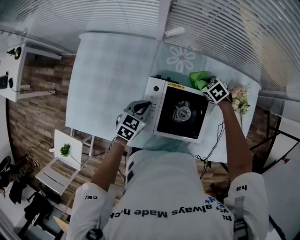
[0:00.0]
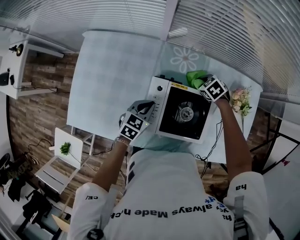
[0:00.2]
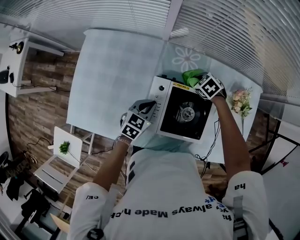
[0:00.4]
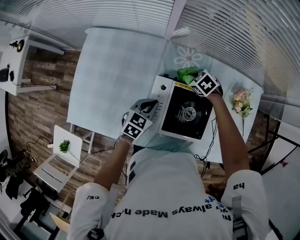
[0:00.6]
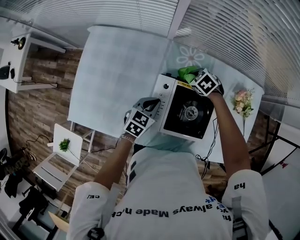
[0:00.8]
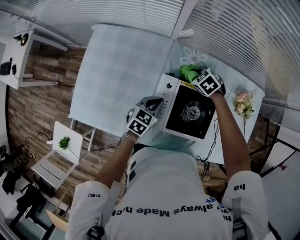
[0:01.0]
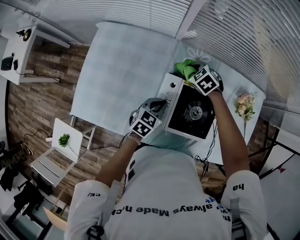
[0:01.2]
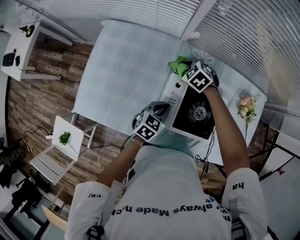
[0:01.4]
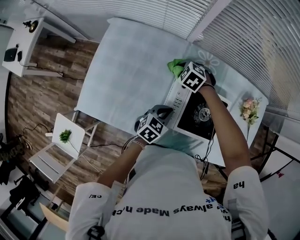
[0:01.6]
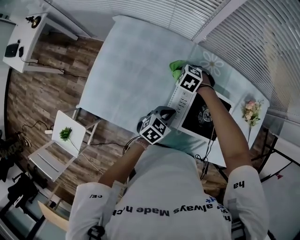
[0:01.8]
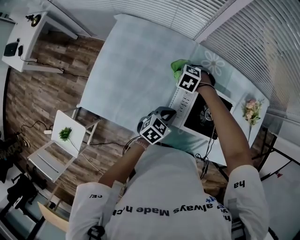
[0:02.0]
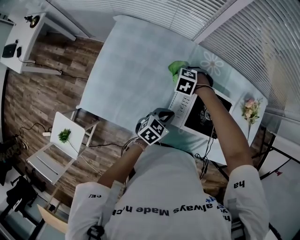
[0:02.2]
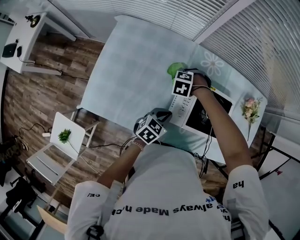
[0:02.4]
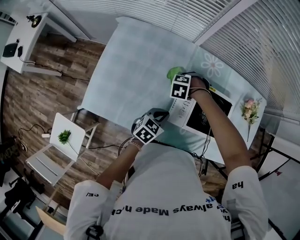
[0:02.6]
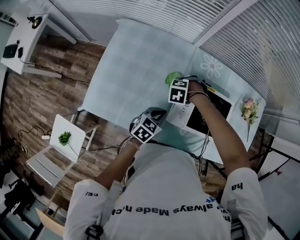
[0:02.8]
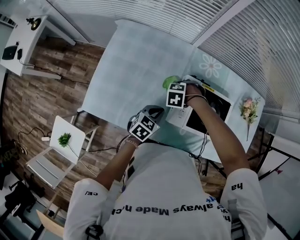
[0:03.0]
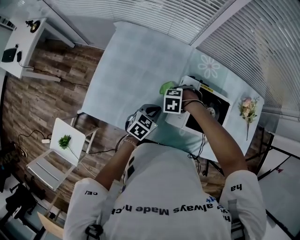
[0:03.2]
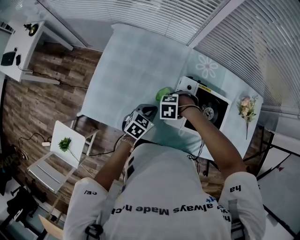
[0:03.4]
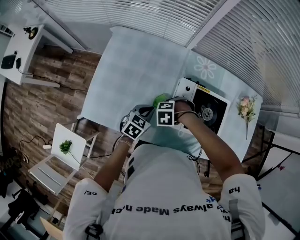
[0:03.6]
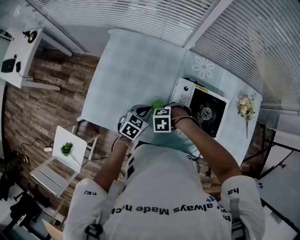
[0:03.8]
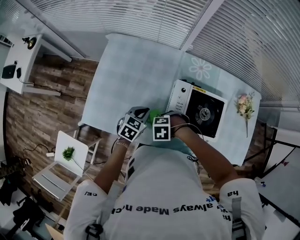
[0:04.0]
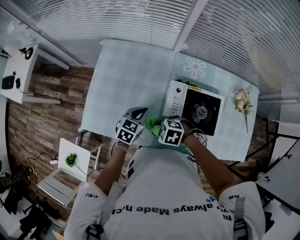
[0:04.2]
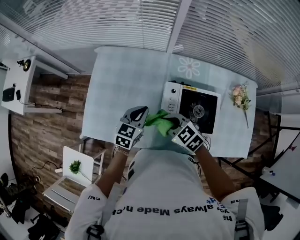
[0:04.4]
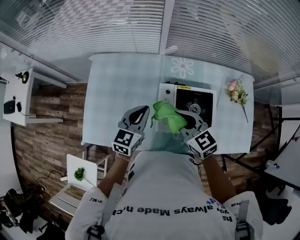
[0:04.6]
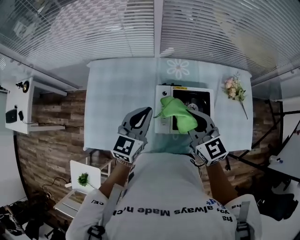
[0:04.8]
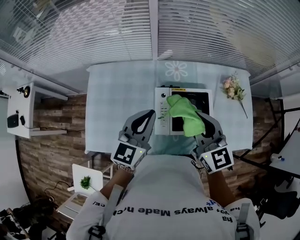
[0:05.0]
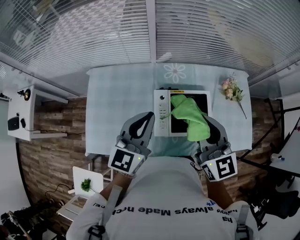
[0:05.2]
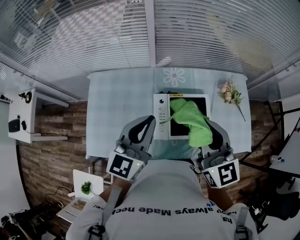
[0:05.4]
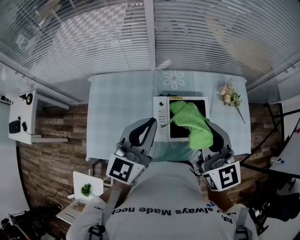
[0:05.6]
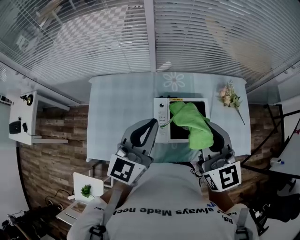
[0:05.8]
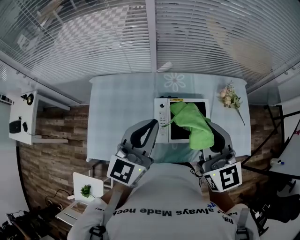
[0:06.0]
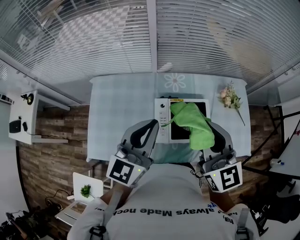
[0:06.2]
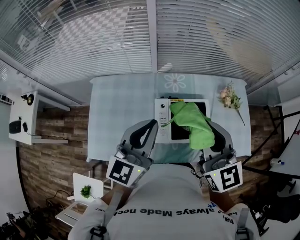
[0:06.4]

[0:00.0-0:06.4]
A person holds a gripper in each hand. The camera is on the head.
0:00.0 to 0:01.6: The left gripper moves backward, roughly 5 cm. Meanwhile the right gripper is displaced to the left by roughly 25 cm, and rotates about 30 degrees.
0:01.6 to 0:03.2: The left gripper moves roughly 10 cm. The right gripper changes place by about 15 cm, and turns by some 30 degrees.
0:03.2 to 0:04.8: The two grippers go about 25 cm upward. The left gripper changes its angle by approximately 30 degrees; the right gripper tilts its fingers some 70 degrees upward.
0:04.8 to 0:06.4: The grippers both shift upward by some 15 cm. The right gripper changes its angle by some 20 degrees.

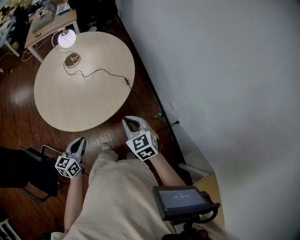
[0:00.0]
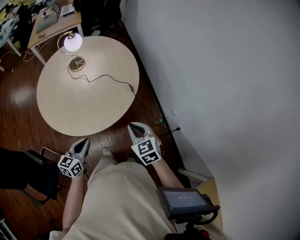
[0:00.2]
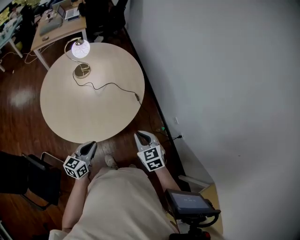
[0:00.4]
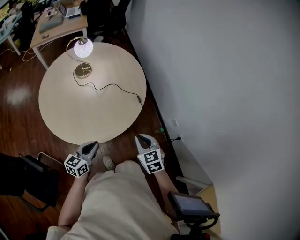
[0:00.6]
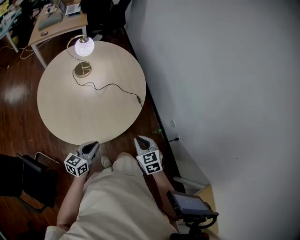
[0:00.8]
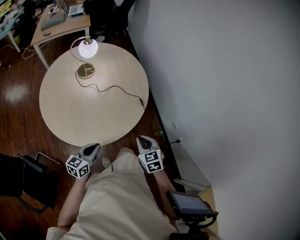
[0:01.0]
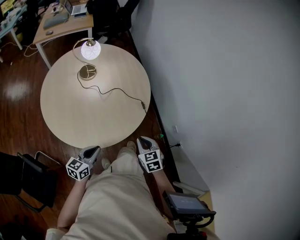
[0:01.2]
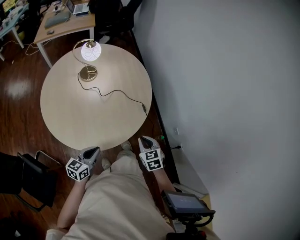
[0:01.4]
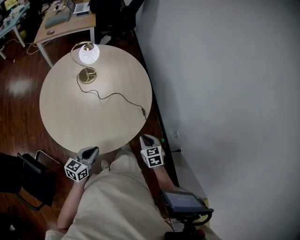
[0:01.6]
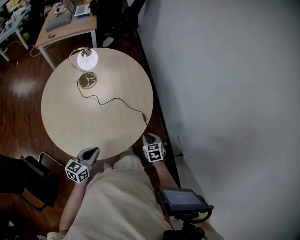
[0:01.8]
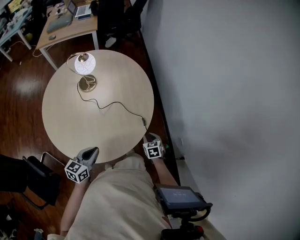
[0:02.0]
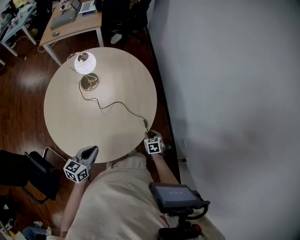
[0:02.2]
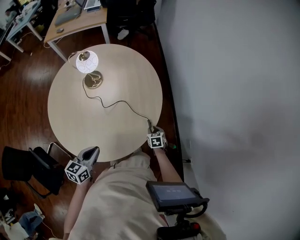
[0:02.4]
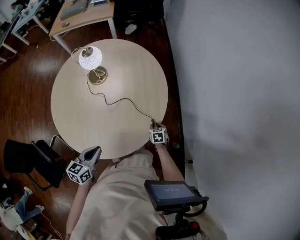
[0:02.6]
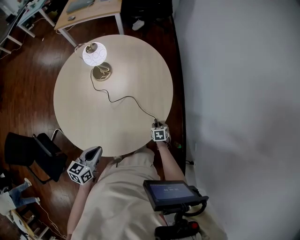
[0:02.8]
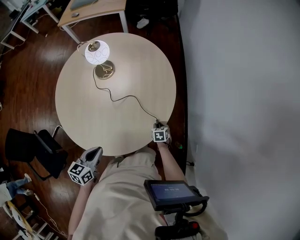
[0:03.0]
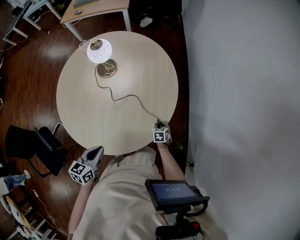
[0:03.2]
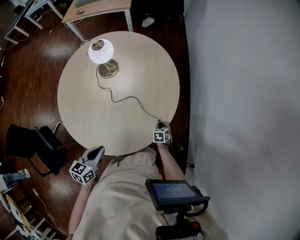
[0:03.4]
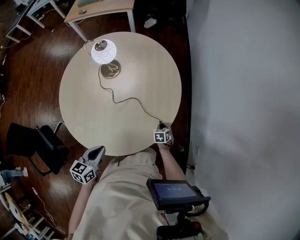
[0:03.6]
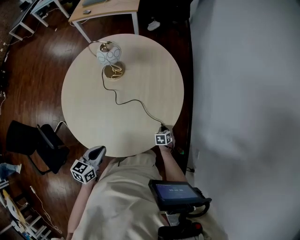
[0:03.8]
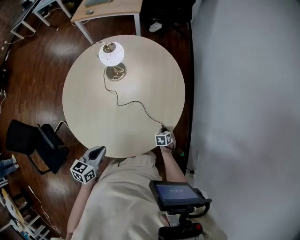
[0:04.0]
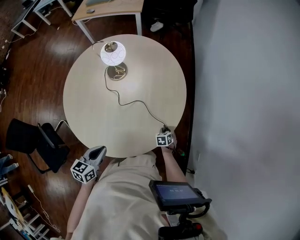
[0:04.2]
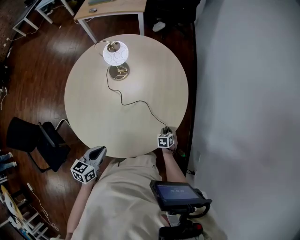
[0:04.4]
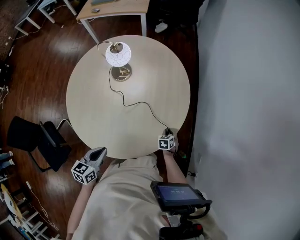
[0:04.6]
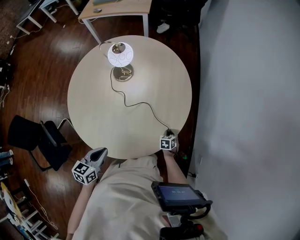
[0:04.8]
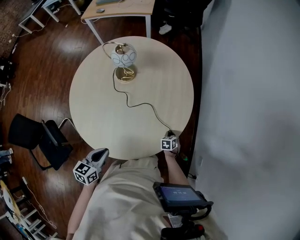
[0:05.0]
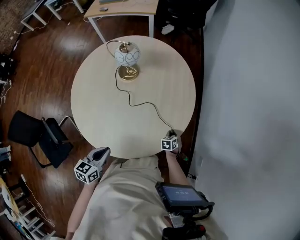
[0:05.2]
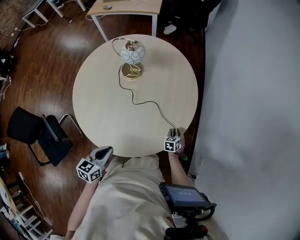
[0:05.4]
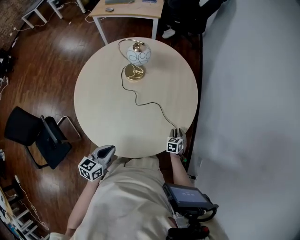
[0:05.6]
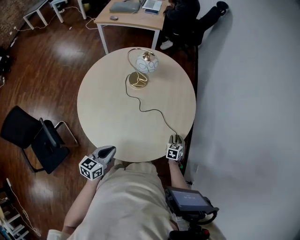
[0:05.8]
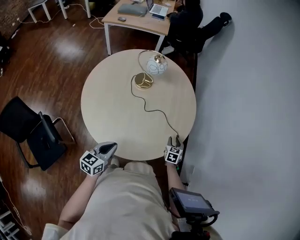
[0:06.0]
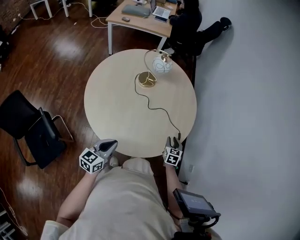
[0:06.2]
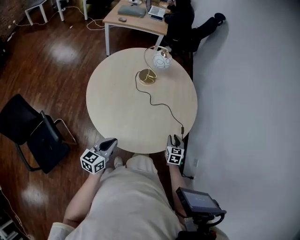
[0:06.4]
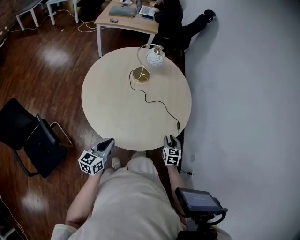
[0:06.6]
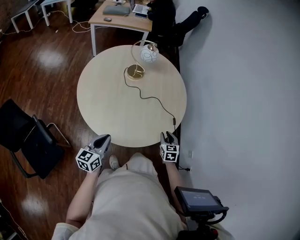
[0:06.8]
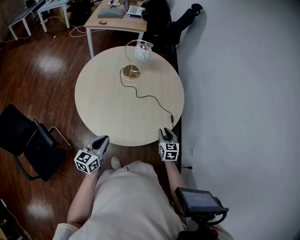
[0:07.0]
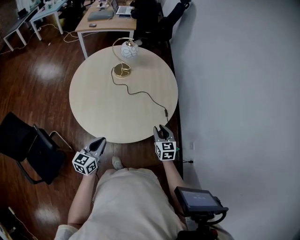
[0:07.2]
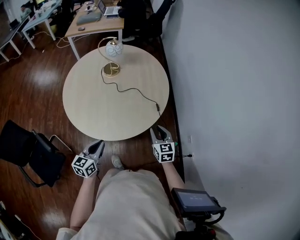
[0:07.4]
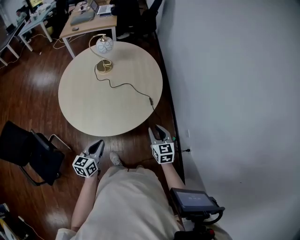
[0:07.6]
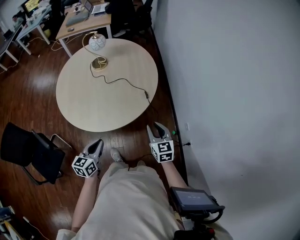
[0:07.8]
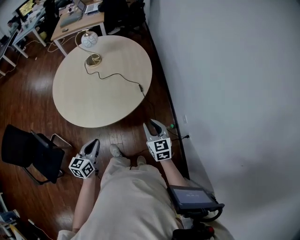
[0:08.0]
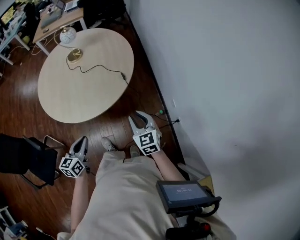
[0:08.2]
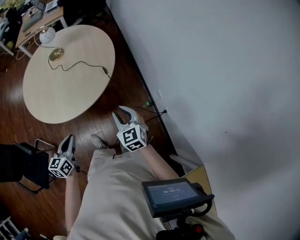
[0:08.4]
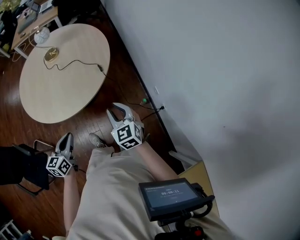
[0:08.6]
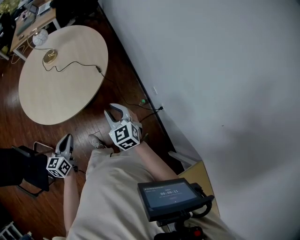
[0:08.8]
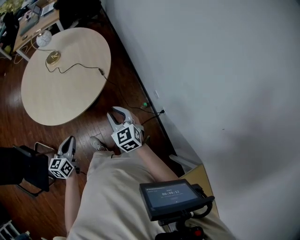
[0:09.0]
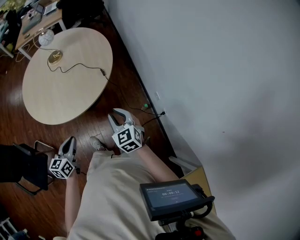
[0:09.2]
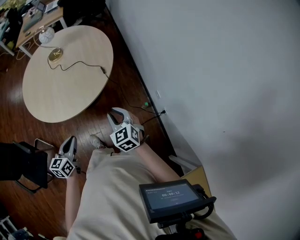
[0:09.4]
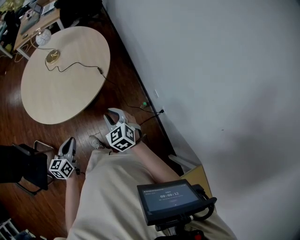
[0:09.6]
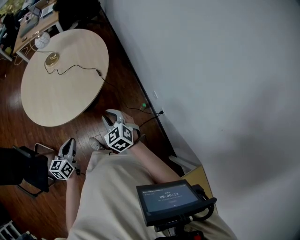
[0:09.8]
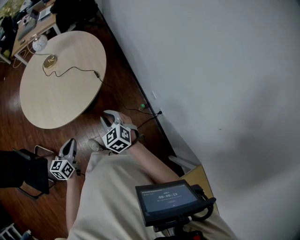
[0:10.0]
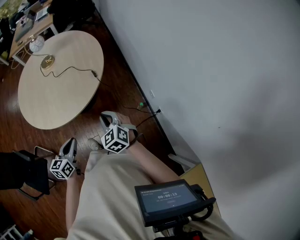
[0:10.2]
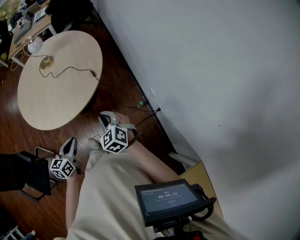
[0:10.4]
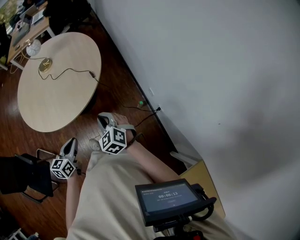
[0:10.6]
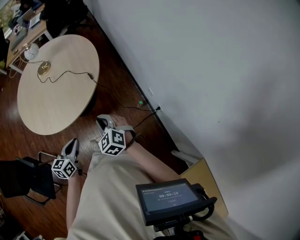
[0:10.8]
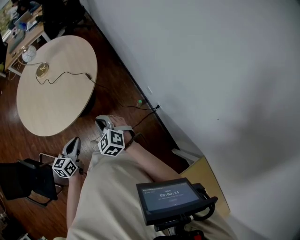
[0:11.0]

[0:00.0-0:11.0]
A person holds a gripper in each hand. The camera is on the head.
0:00.0 to 0:01.6: The left gripper moves forward and to the left, approximately 15 cm. Meanwhile the right gripper moves downward and forward, some 15 cm.
0:01.6 to 0:03.2: The left gripper travels forward by roughly 10 cm, and changes its angle by some 30 degrees. The right gripper travels downward and forward by some 35 cm.
0:03.2 to 0:04.8: The grippers stay close to where they were, moving slightly.
0:04.8 to 0:06.2: The left gripper moves to the left and backward, about 15 cm; the right gripper heads upward, backward and to the left, covering some 25 cm, and changes its angle by some 20 degrees.
0:06.2 to 0:07.8: The right gripper travels backward, to the right and upward by about 25 cm, and turns by about 20 degrees; the left gripper goes some 20 cm to the right and backward.
0:07.8 to 0:09.4: The right gripper is displaced backward by roughly 10 cm, while the left gripper shifts approximately 10 cm backward and to the right.
0:09.4 to 0:11.0: The left gripper is displaced to the right by about 5 cm.

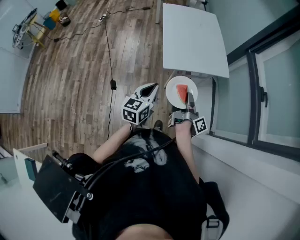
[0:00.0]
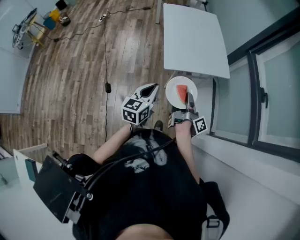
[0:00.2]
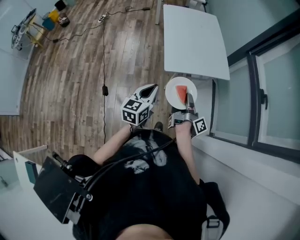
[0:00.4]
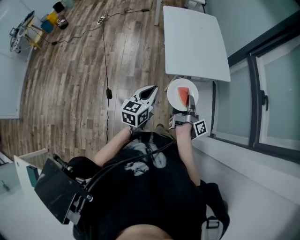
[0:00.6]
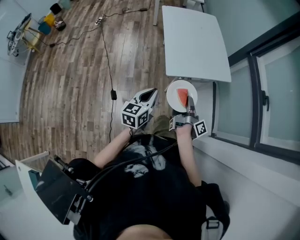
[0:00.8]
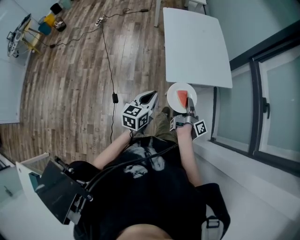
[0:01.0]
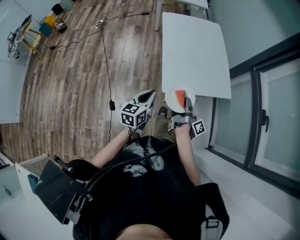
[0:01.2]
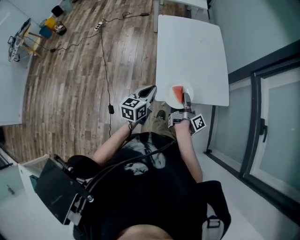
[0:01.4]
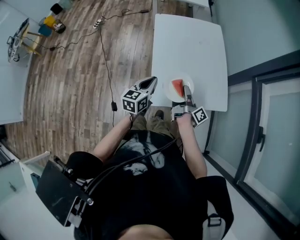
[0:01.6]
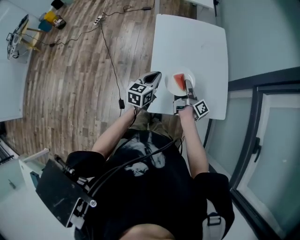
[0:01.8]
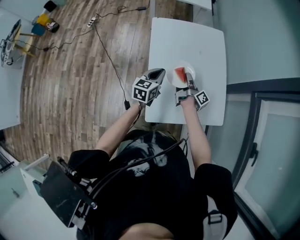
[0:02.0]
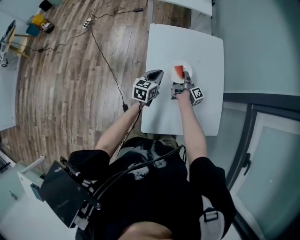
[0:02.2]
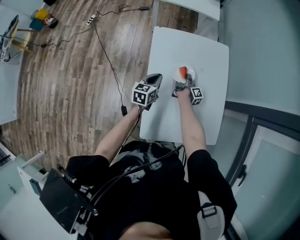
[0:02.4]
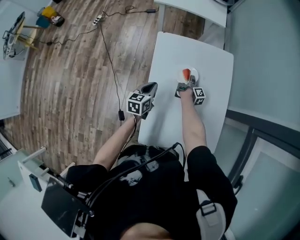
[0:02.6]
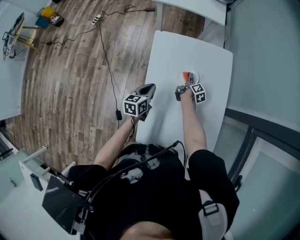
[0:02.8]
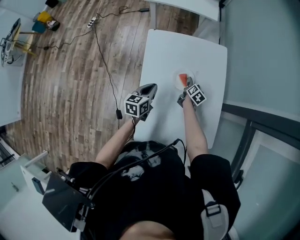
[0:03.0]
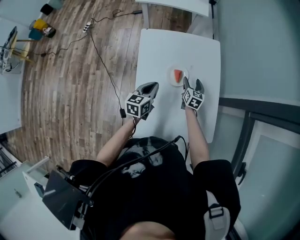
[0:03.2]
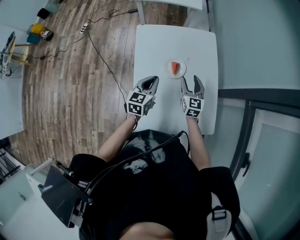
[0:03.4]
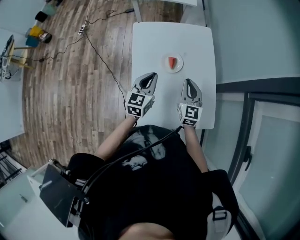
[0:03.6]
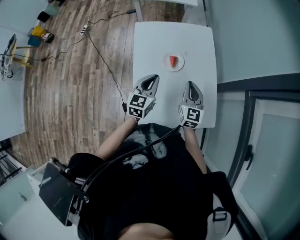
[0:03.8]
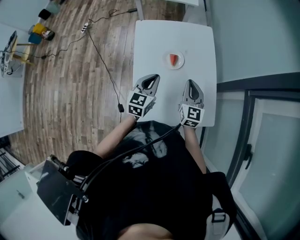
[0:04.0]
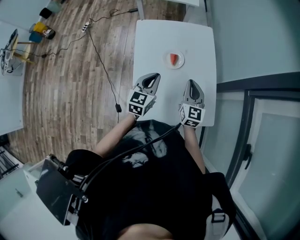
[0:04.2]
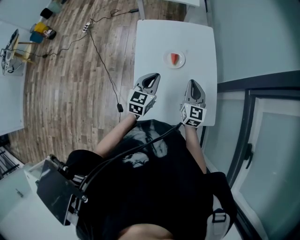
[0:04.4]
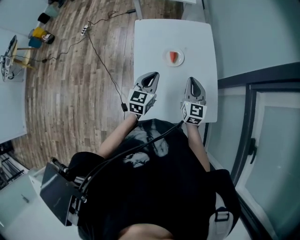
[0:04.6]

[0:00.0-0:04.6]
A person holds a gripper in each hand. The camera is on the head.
0:00.0 to 0:01.6: Both grippers travel together forward, some 35 cm.
0:01.6 to 0:03.0: The right gripper is displaced forward and downward by about 40 cm, angles its fingers downward, by roughly 40 degrees, and opens; the left gripper moves forward, approximately 25 cm.
0:03.0 to 0:04.6: The right gripper goes about 30 cm upward and backward, swivels roughly 50 degrees, and closes its fingers; the left gripper moves upward, to the right and backward, roughly 15 cm, and changes its angle by about 20 degrees.

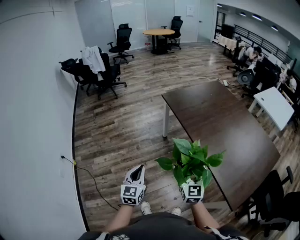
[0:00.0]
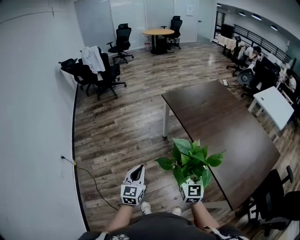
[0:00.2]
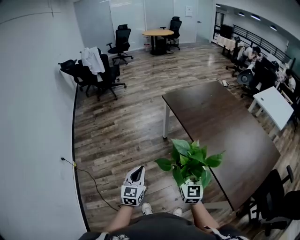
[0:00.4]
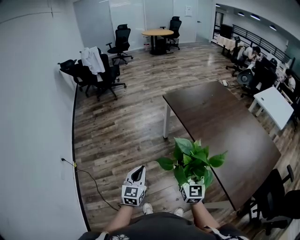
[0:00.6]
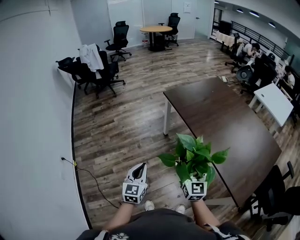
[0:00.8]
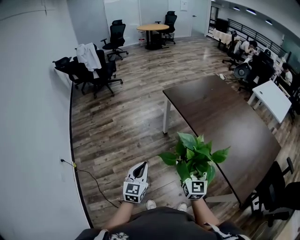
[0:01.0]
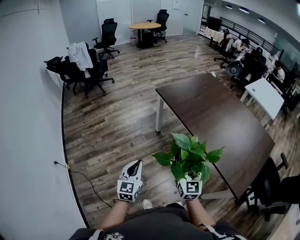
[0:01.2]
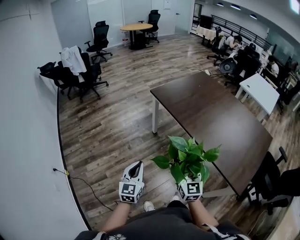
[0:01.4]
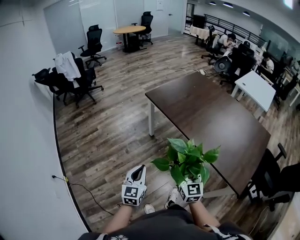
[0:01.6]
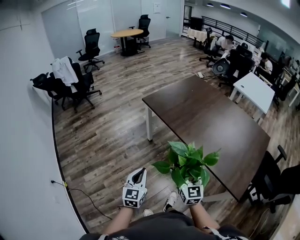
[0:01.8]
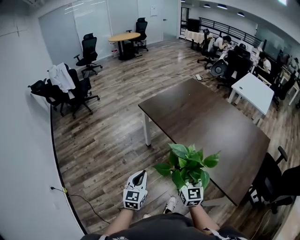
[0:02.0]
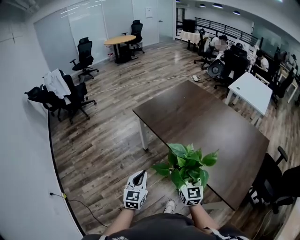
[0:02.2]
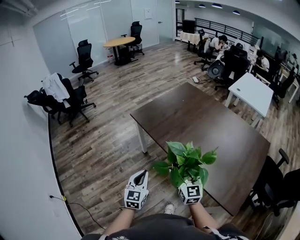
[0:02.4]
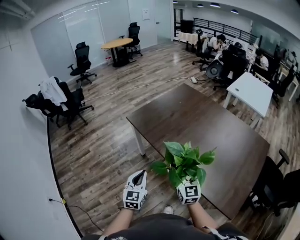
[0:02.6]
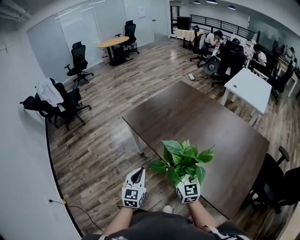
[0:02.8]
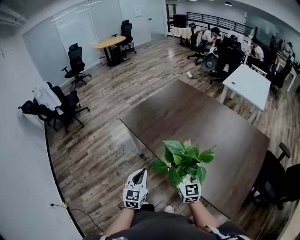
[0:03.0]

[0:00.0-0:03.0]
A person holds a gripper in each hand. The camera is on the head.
0:00.0 to 0:01.6: The left gripper ends up roughly 5 cm from where it was.
0:01.6 to 0:03.0: The grippers both shift forward and to the right by some 30 cm.
